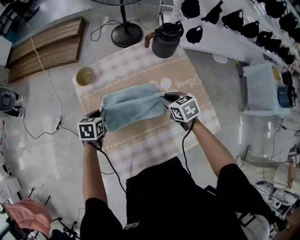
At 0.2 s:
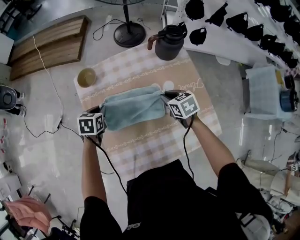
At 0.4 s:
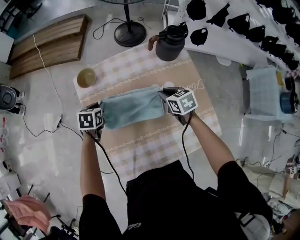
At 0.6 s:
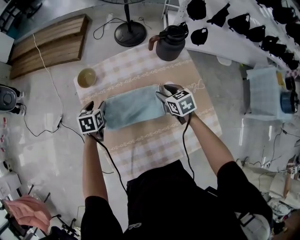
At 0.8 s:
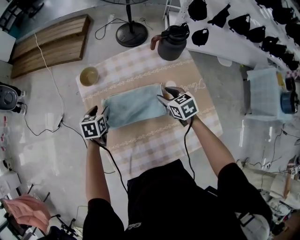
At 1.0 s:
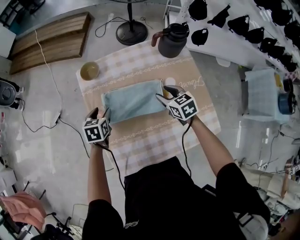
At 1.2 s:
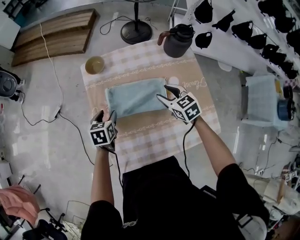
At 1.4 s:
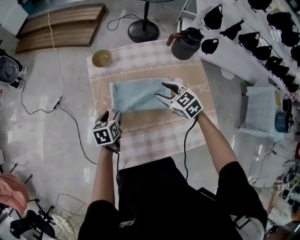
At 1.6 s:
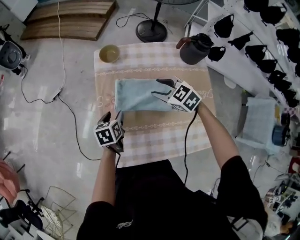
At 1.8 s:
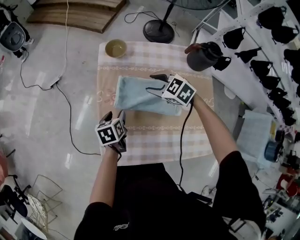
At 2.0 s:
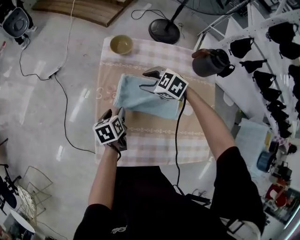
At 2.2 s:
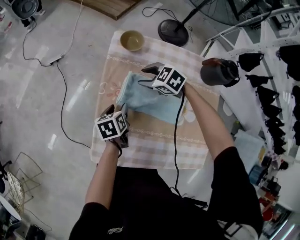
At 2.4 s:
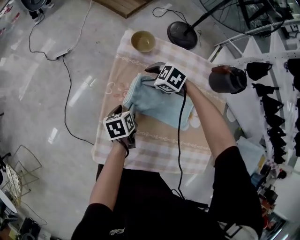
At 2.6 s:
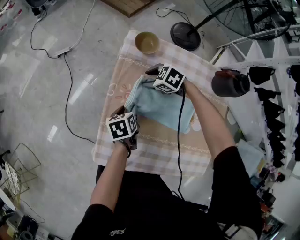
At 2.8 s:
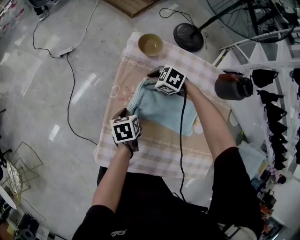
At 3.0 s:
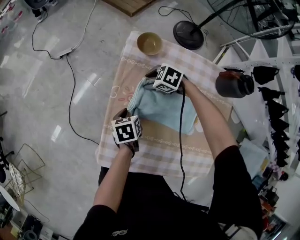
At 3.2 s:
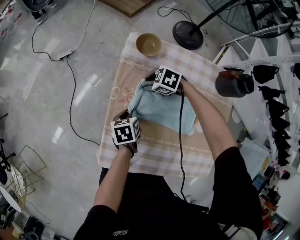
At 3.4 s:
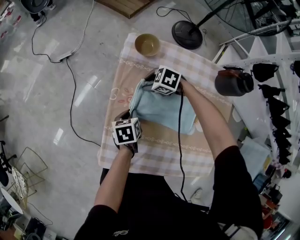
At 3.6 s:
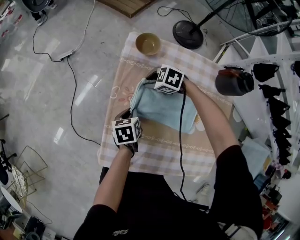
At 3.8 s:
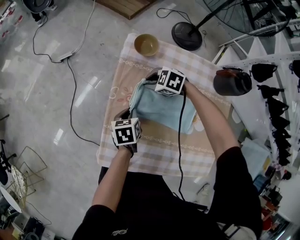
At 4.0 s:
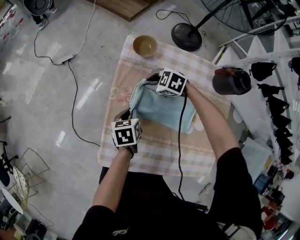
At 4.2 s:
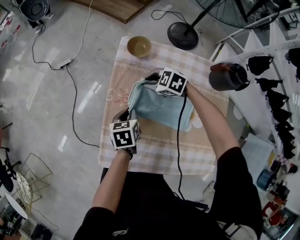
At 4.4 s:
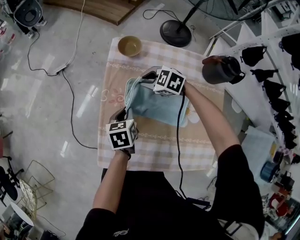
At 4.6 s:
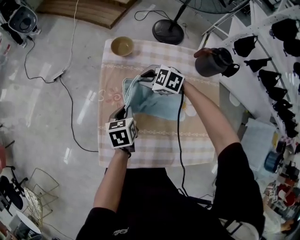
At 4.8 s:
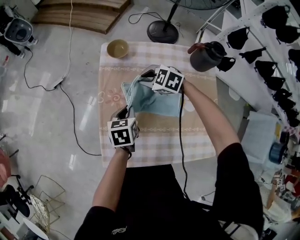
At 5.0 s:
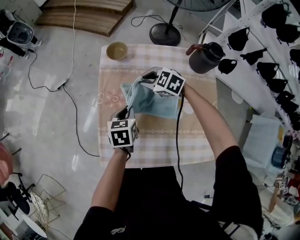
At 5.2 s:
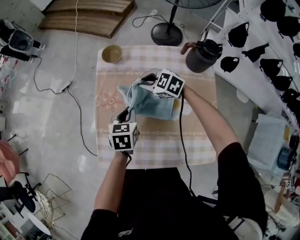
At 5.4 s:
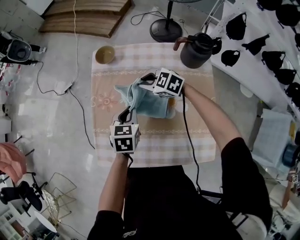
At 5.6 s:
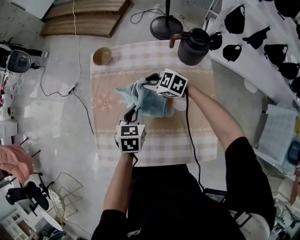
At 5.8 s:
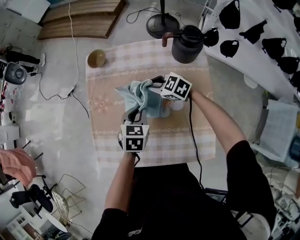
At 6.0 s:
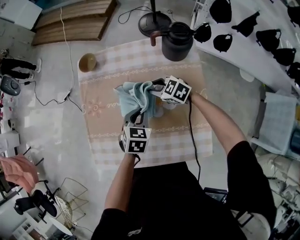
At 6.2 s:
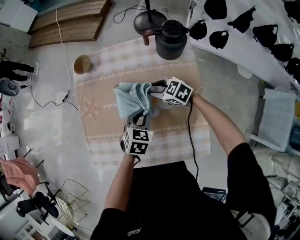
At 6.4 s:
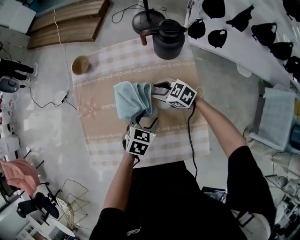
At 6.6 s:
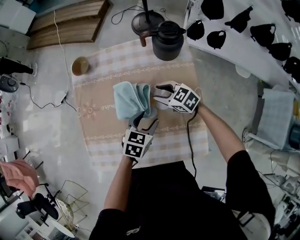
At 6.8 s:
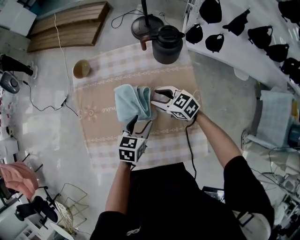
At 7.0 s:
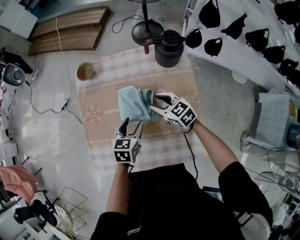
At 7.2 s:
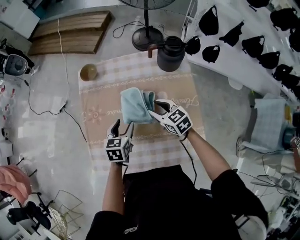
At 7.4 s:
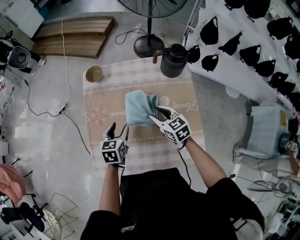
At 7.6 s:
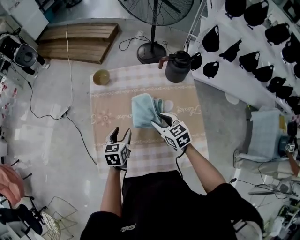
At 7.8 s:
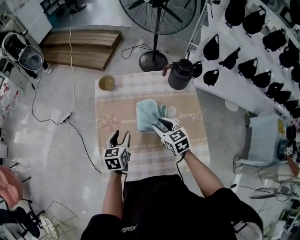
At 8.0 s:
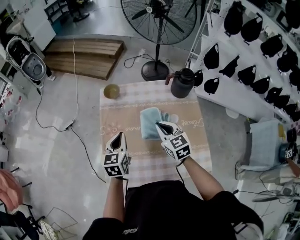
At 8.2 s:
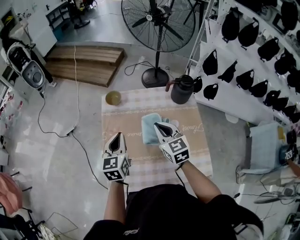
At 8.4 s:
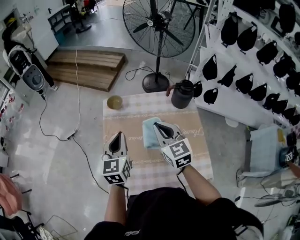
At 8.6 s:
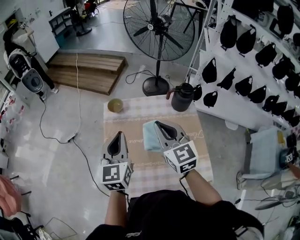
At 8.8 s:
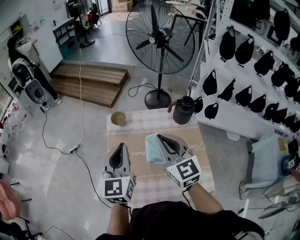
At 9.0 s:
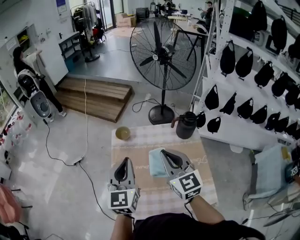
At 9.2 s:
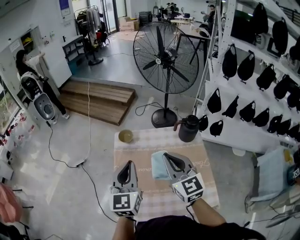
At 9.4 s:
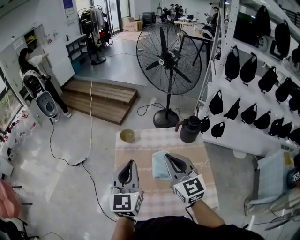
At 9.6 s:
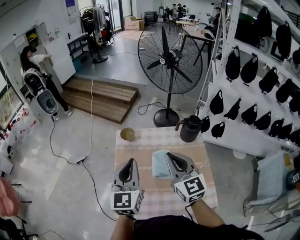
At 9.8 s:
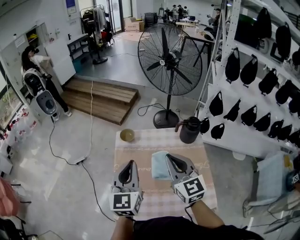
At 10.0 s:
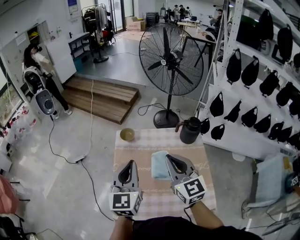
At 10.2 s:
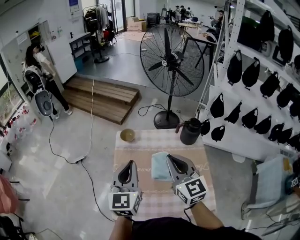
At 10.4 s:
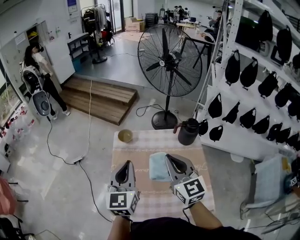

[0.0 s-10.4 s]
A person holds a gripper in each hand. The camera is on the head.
0.0 to 1.4 s: The right gripper is displaced to the left by roughly 10 cm, swivels roughly 30 degrees, and opens. Meanwhile the left gripper goes some 10 cm backward, swivels some 20 degrees, and opens.
1.4 to 3.0 s: The left gripper shifts roughly 10 cm downward, and changes its angle by approximately 30 degrees. The right gripper changes place by about 25 cm, and changes its angle by about 60 degrees.
3.0 to 4.4 s: Both grippers move upward, approximately 5 cm. The right gripper closes up; the left gripper closes up.
4.4 to 6.0 s: The grippers both shift to the right and backward by some 25 cm. The right gripper changes its angle by about 20 degrees. Meanwhile the left gripper rolls clockwise, seen from behind, by roughly 40 degrees.
6.0 to 7.4 s: The left gripper moves to the left, approximately 15 cm, swivels roughly 20 degrees, and opens, while the right gripper travels upward and backward by about 10 cm, and turns by approximately 30 degrees.
7.4 to 9.0 s: The grippers both shift upward by roughly 30 cm. The left gripper points its fingers approximately 40 degrees further upward, and closes; the right gripper rotates roughly 30 degrees, and closes.
9.0 to 10.4 s: The grippers stay close to where they were, moving slightly.

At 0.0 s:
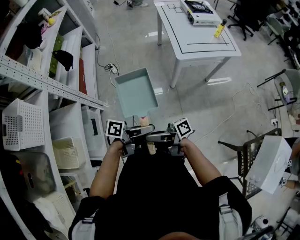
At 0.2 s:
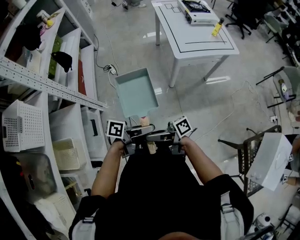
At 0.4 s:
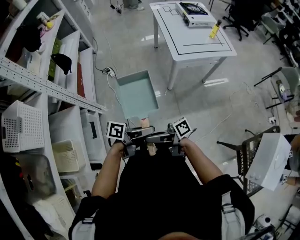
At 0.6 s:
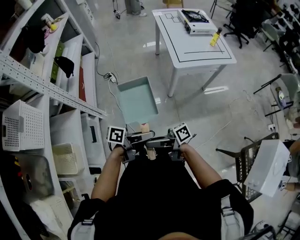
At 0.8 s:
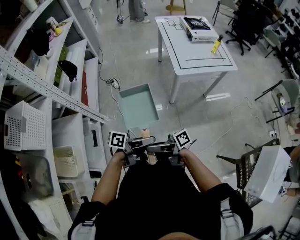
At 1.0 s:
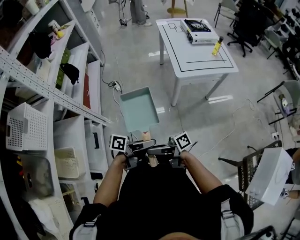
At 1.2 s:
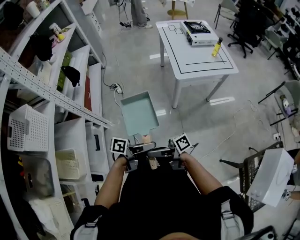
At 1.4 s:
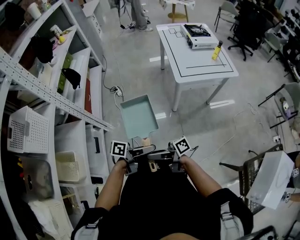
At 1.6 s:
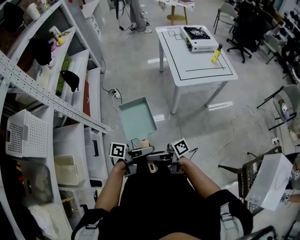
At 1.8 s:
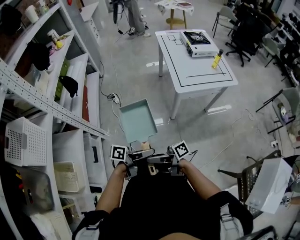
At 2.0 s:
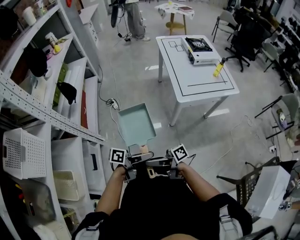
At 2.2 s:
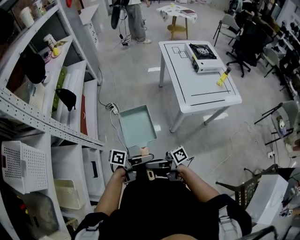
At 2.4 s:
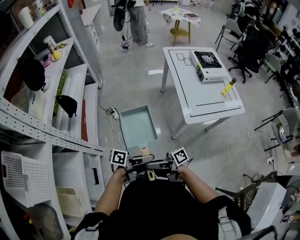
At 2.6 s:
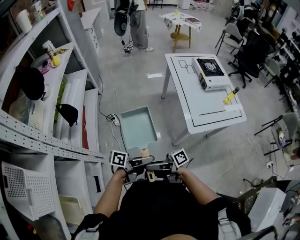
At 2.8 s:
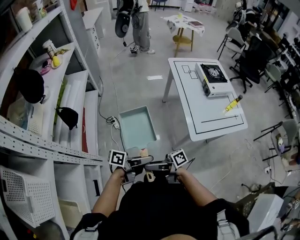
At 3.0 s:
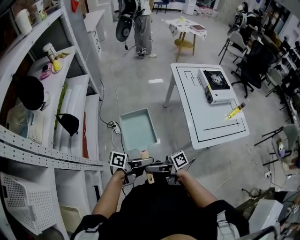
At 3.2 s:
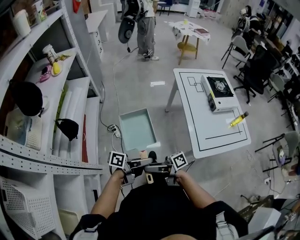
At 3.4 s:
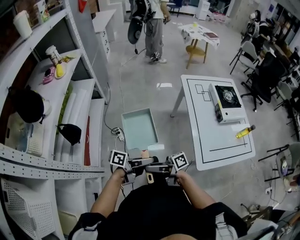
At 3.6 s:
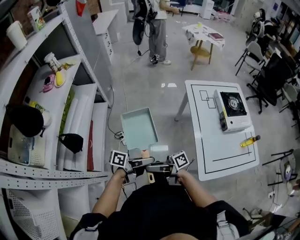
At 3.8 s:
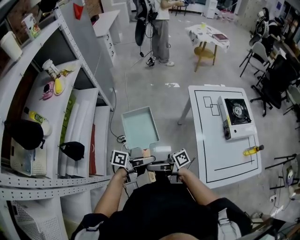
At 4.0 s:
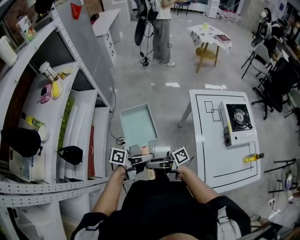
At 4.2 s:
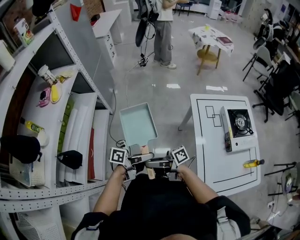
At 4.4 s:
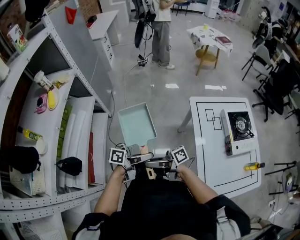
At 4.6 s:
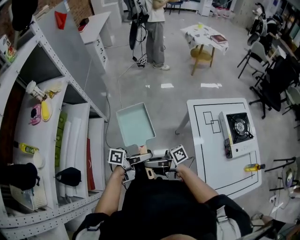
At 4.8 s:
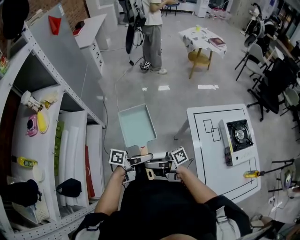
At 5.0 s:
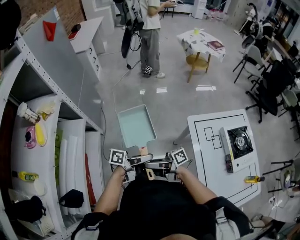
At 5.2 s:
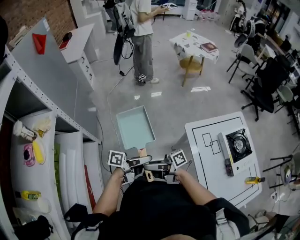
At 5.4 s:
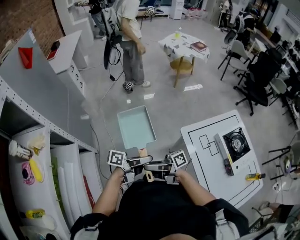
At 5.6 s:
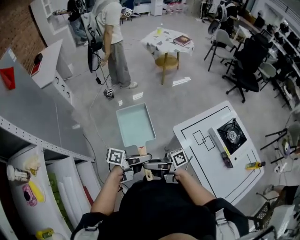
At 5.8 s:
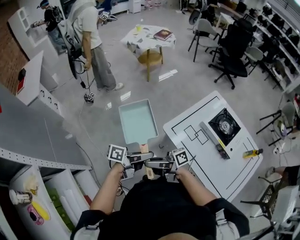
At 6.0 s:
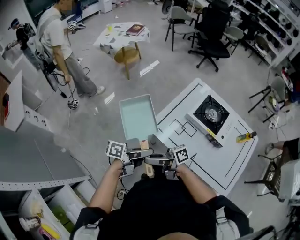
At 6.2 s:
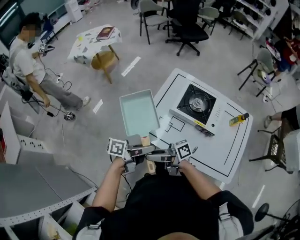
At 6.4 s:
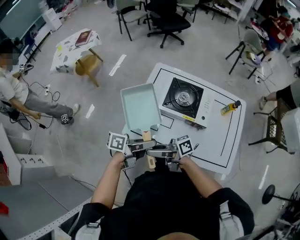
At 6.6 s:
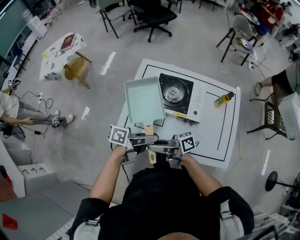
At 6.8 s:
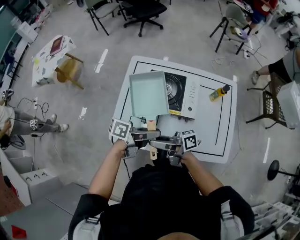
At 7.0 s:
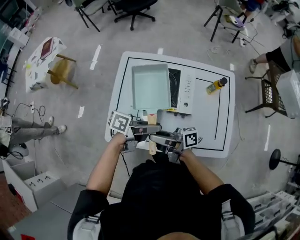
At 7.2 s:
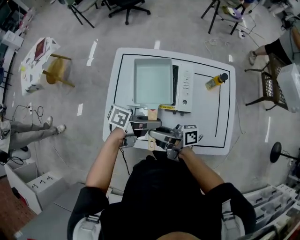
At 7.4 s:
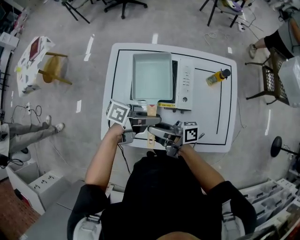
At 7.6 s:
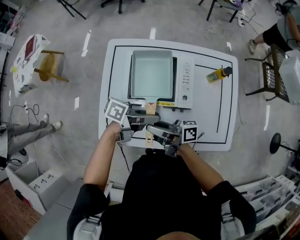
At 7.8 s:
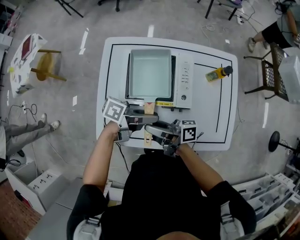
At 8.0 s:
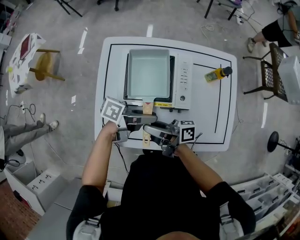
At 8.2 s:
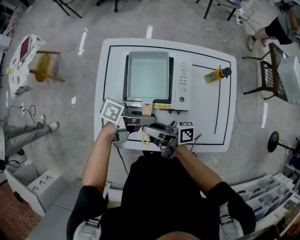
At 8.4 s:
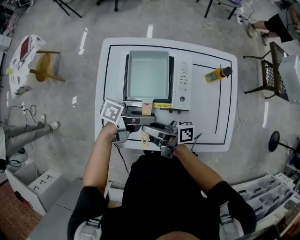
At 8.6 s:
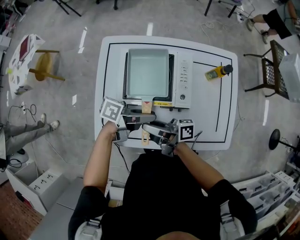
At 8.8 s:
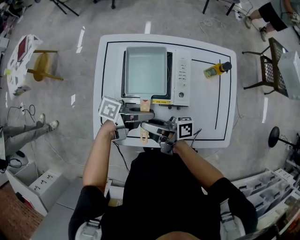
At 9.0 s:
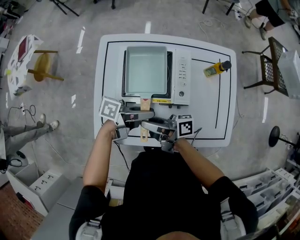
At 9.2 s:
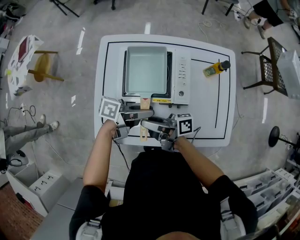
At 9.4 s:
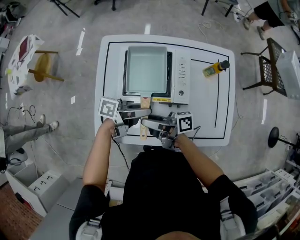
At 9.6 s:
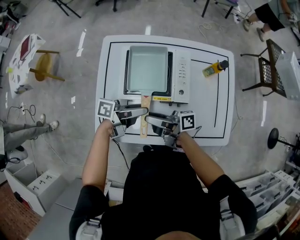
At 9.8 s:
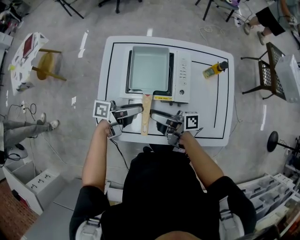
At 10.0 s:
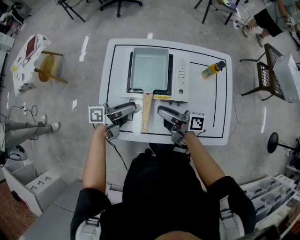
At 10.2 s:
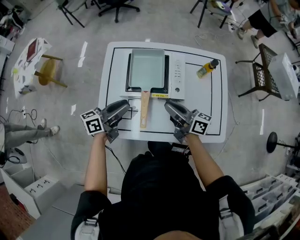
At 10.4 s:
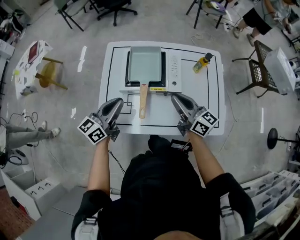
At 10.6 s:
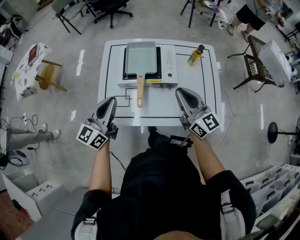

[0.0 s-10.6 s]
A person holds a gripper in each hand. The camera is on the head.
0.0 to 1.6 s: The grippers make only small movements.
1.6 to 3.0 s: The left gripper changes place by about 40 cm, while the right gripper moves some 40 cm.
3.0 to 4.6 s: The two grippers travel together, roughly 40 cm.
4.6 to 6.0 s: The left gripper shifts by some 35 cm, and changes its angle by about 50 degrees, while the right gripper changes place by some 35 cm, and swivels about 50 degrees.
6.0 to 7.6 s: The left gripper ends up roughly 40 cm from where it was, and changes its angle by about 50 degrees. The right gripper changes place by about 40 cm, and turns by roughly 60 degrees.
7.6 to 9.0 s: The grippers stay close to where they were, moving slightly.
9.0 to 10.6 s: The left gripper heads upward, covering approximately 20 cm, changes its angle by roughly 80 degrees, and closes up; the right gripper changes place by about 25 cm, rotates around the line of its fingers by roughly 70 degrees, counterclockwise from behind, and closes.

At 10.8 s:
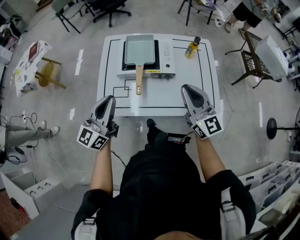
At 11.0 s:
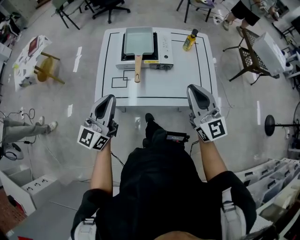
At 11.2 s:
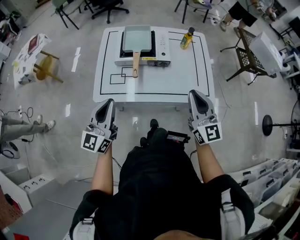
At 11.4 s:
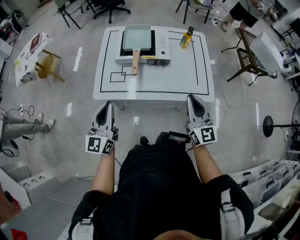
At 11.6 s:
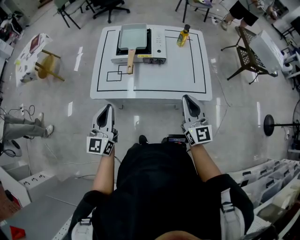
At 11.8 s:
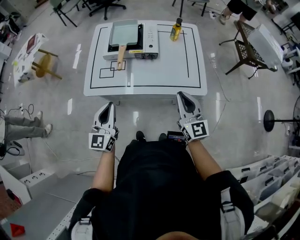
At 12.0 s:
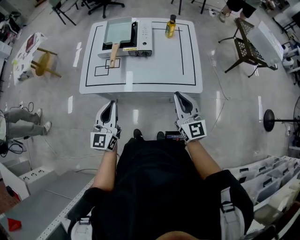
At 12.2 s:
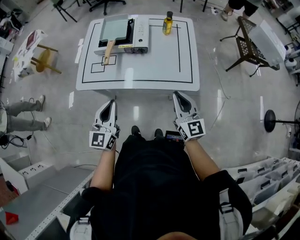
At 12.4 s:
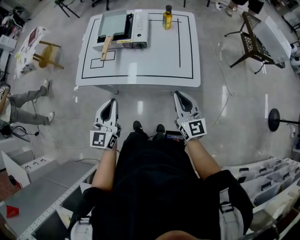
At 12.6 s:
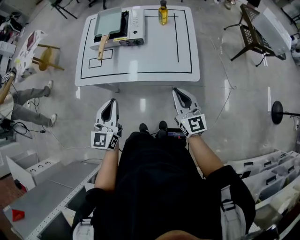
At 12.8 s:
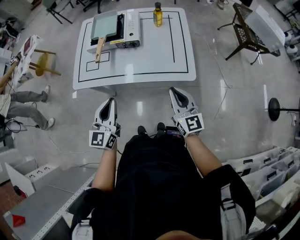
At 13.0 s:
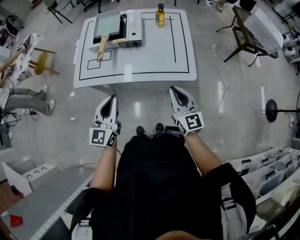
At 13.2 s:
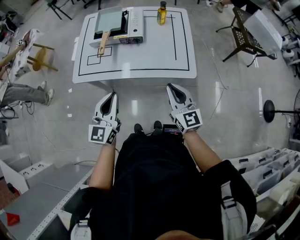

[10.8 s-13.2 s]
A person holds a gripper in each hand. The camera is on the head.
10.8 to 12.0 s: The grippers both shift backward, to the right and downward by roughly 20 cm. The left gripper swivels approximately 20 degrees.
12.0 to 13.2 s: The left gripper heads to the right, covering about 5 cm.
